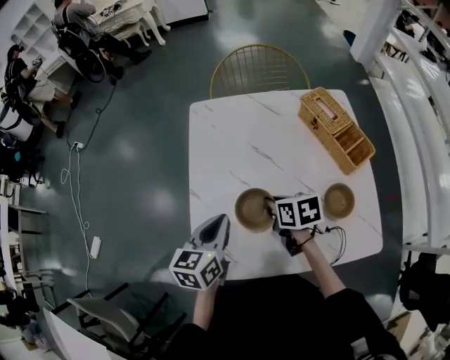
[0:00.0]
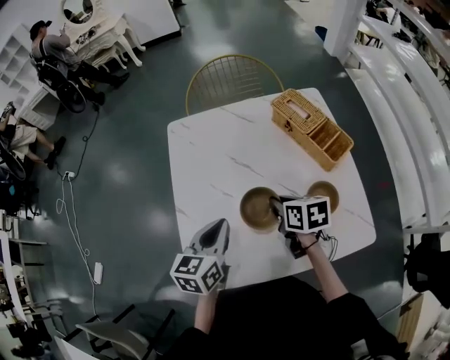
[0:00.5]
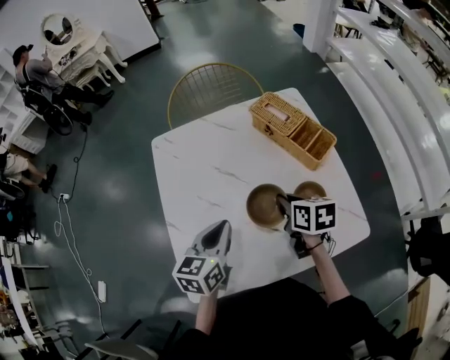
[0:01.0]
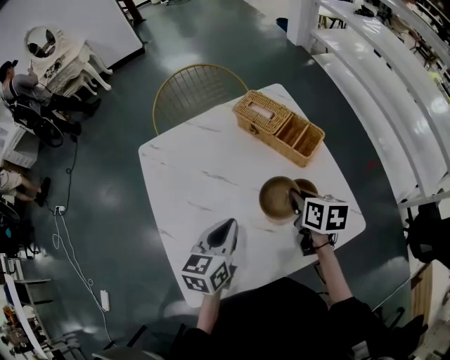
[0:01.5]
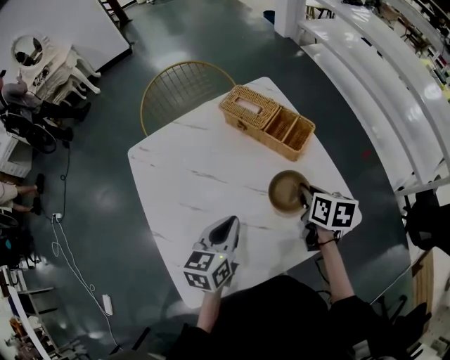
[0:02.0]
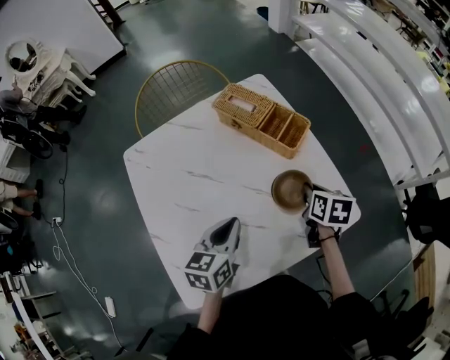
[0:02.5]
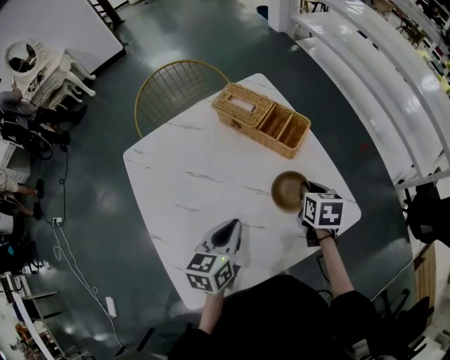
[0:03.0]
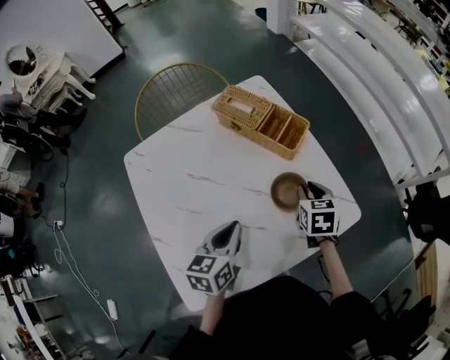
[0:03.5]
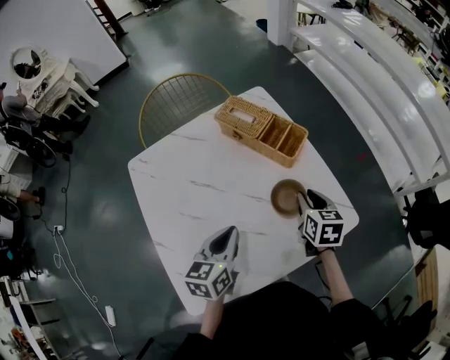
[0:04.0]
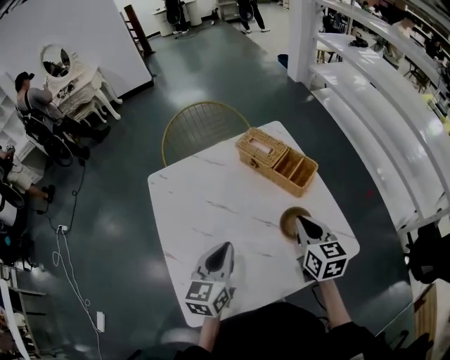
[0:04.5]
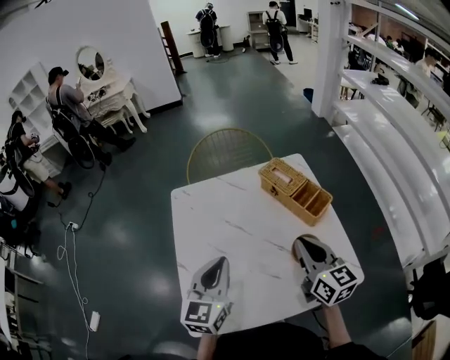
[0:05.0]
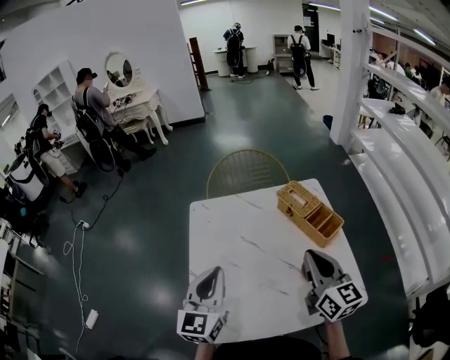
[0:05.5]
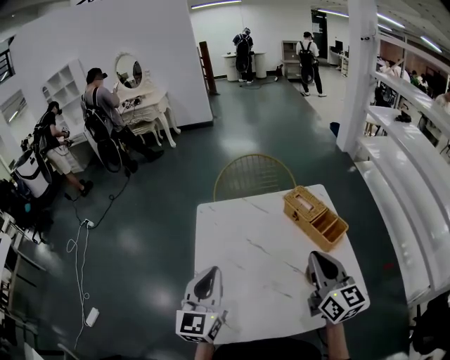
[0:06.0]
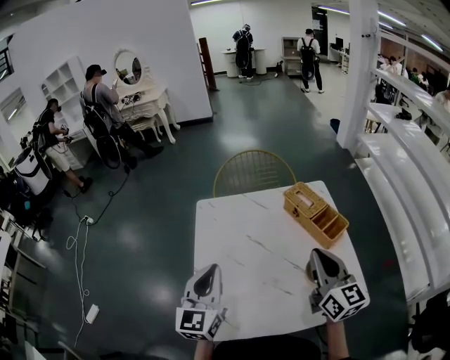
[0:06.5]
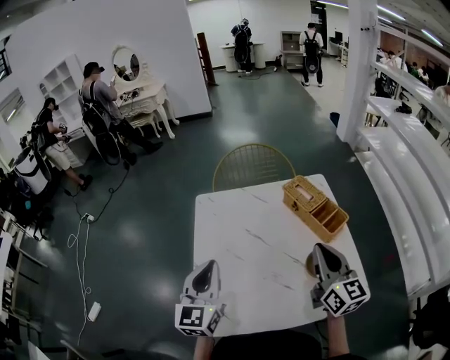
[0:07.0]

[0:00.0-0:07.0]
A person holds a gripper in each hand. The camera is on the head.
0:00.0 to 0:02.0: The left gripper moves roughly 20 cm, and rotates about 30 degrees, while the right gripper shifts by approximately 30 cm, and rotates about 40 degrees.
0:02.0 to 0:03.5: The right gripper rotates roughly 20 degrees.
0:03.5 to 0:05.0: The two grippers go some 15 cm upward. The right gripper tilts its fingers some 40 degrees upward, while the left gripper turns by some 40 degrees.
0:05.0 to 0:07.0: The right gripper is displaced upward by about 5 cm, while the left gripper travels to the left by roughly 10 cm.

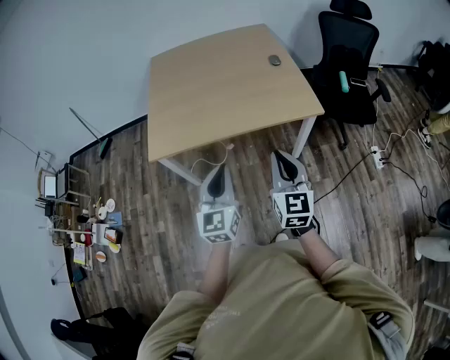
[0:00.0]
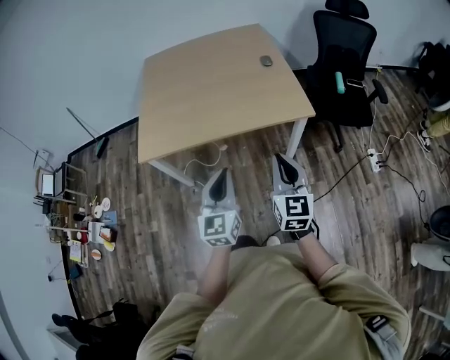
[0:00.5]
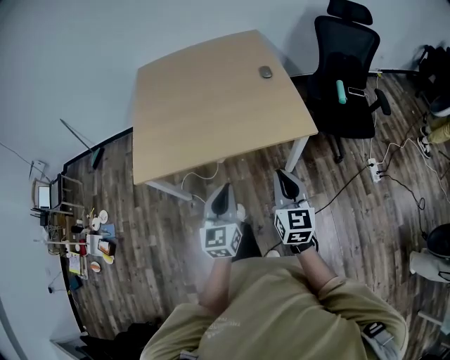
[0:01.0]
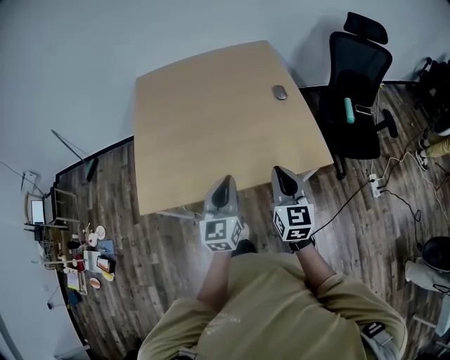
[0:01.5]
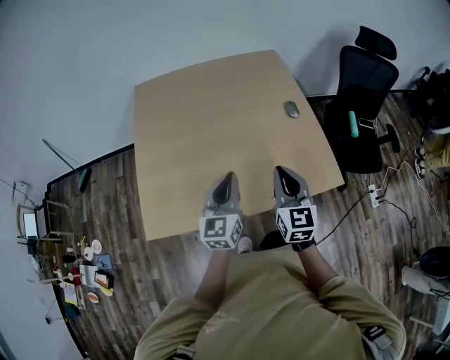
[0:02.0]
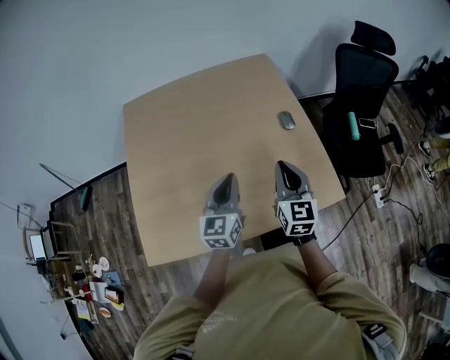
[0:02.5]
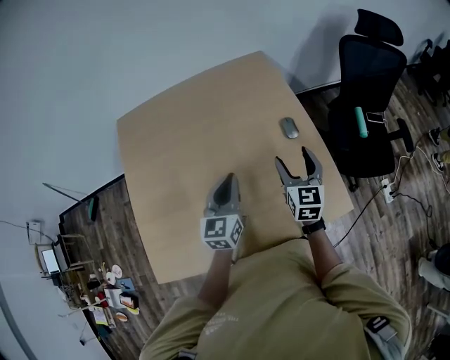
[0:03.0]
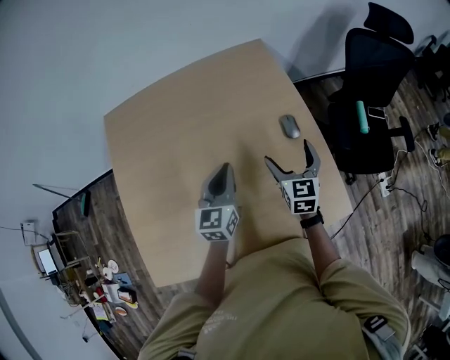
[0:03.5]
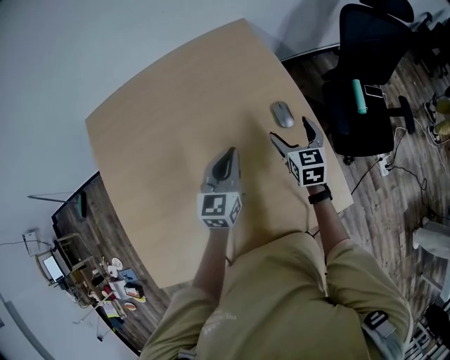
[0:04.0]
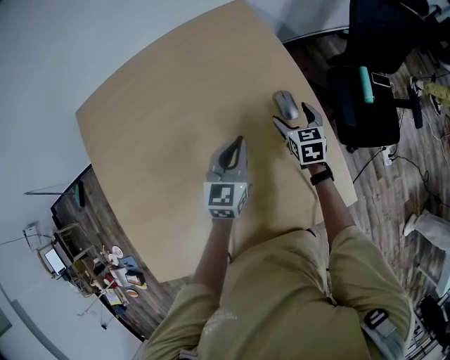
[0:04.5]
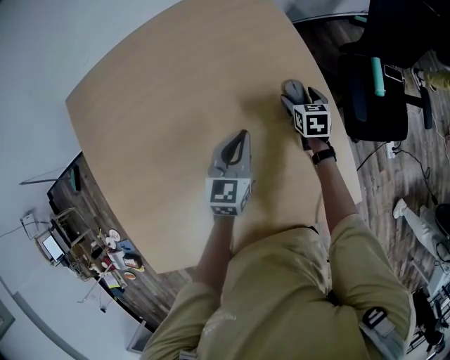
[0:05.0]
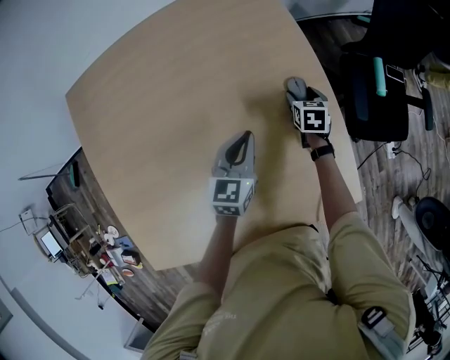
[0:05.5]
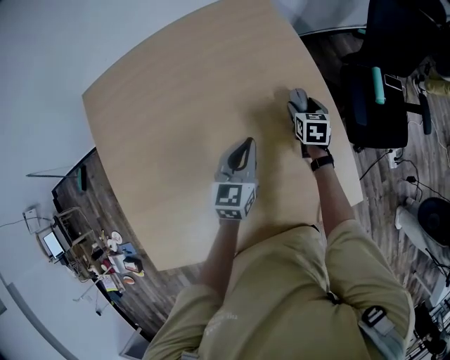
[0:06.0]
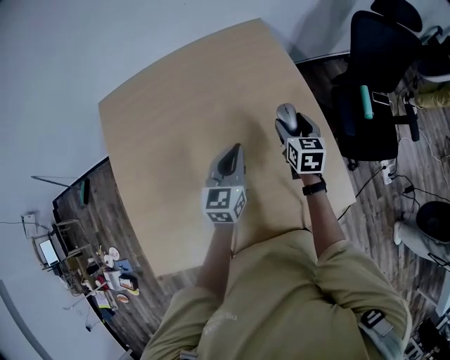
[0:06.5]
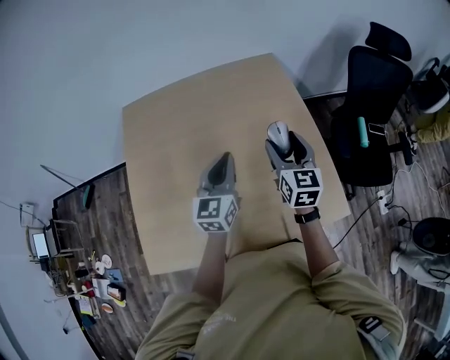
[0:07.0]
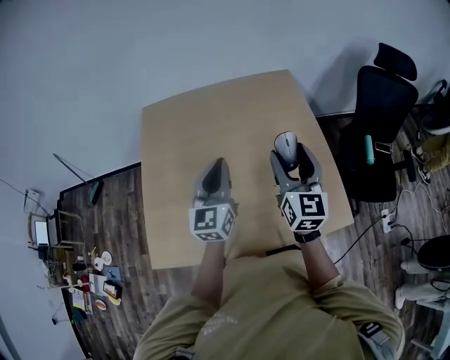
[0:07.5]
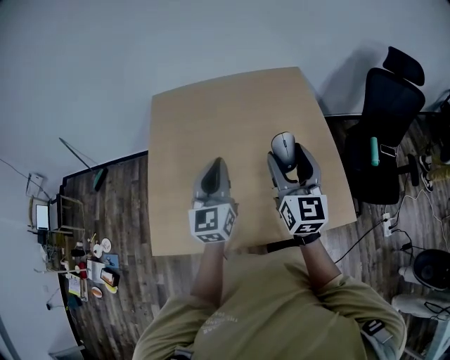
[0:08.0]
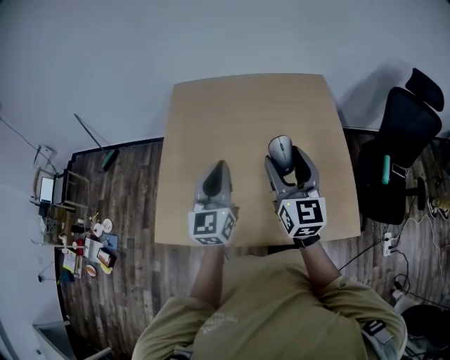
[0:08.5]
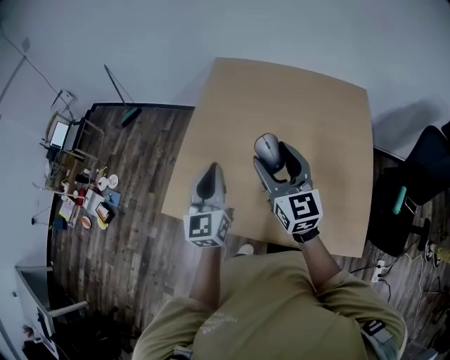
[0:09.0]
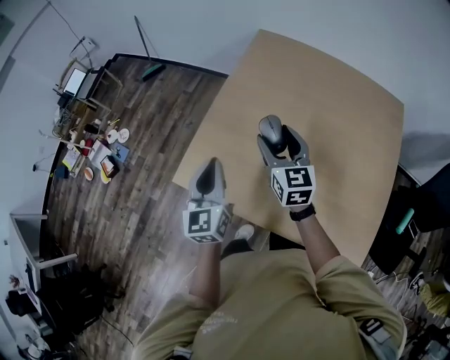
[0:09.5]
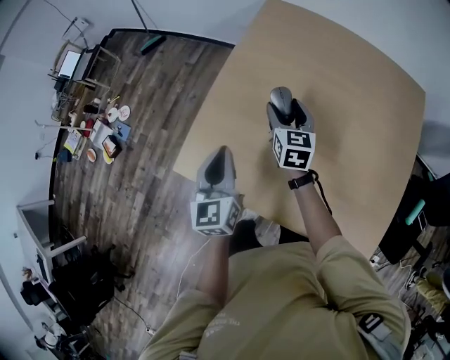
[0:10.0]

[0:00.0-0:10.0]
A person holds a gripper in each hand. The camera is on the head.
0:00.0 to 0:02.0: The two grippers travel together, forward, roughly 40 cm.
0:02.0 to 0:04.0: The left gripper is displaced forward by some 35 cm. The right gripper shifts roughly 40 cm forward and downward, turns by about 20 degrees, and opens.
0:04.0 to 0:06.0: The right gripper moves downward and forward, about 15 cm; the left gripper is displaced downward by approximately 5 cm.
0:06.0 to 0:08.0: The grippers both shift upward, backward and to the left by some 50 cm. The right gripper angles its fingers upward, by about 50 degrees. Meanwhile the left gripper swivels approximately 40 degrees.
0:08.0 to 0:10.0: The left gripper moves roughly 30 cm, and swivels approximately 40 degrees. Meanwhile the right gripper ends up roughly 40 cm from where it was, and turns by about 40 degrees.

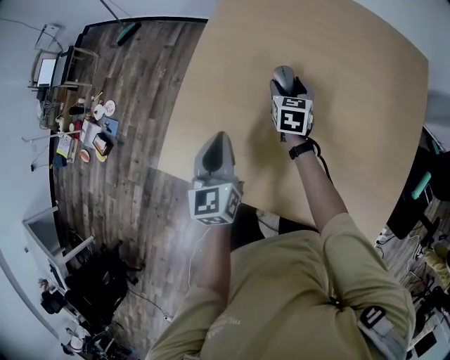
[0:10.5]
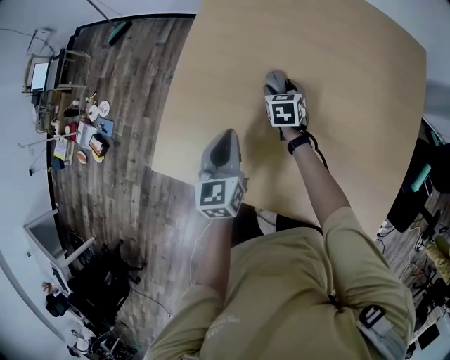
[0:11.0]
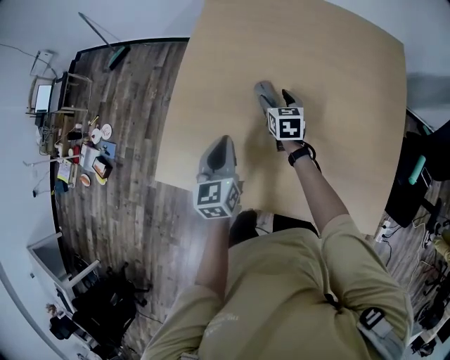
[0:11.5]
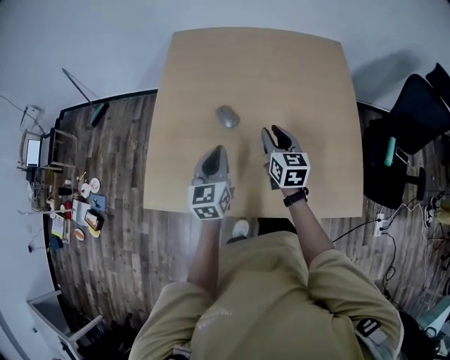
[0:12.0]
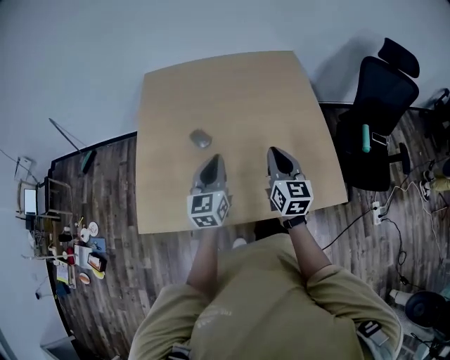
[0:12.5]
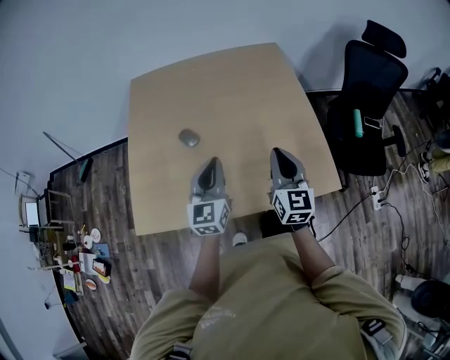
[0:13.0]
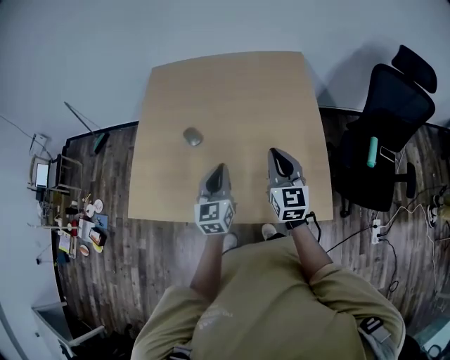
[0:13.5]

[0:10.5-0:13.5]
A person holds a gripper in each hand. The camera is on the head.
0:10.5 to 0:12.0: The left gripper is displaced to the right by about 10 cm, and swivels some 20 degrees. The right gripper travels backward, upward and to the right by approximately 25 cm, and turns by some 20 degrees.
0:12.0 to 0:13.5: The right gripper heads to the right and upward, covering approximately 25 cm, and changes its angle by about 20 degrees. Meanwhile the left gripper travels to the right by approximately 25 cm.

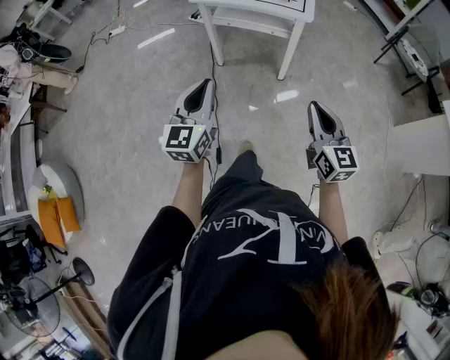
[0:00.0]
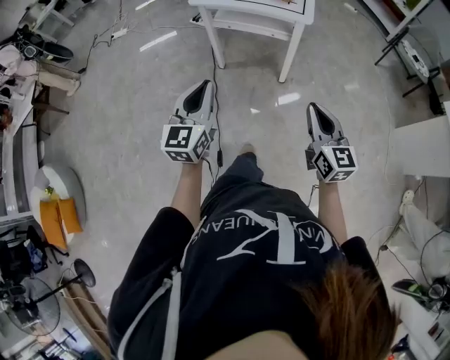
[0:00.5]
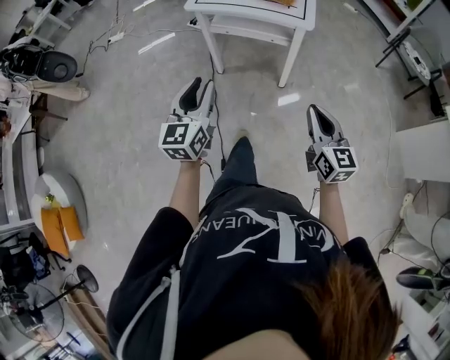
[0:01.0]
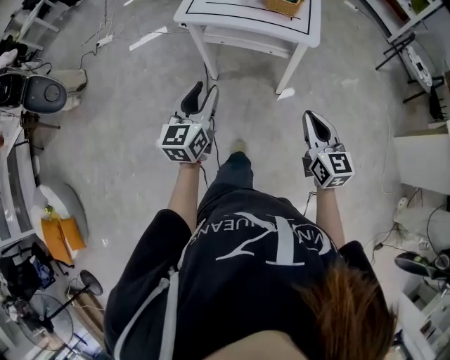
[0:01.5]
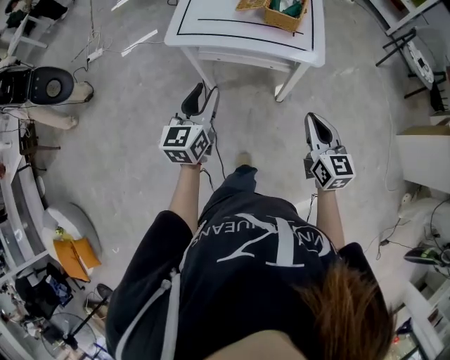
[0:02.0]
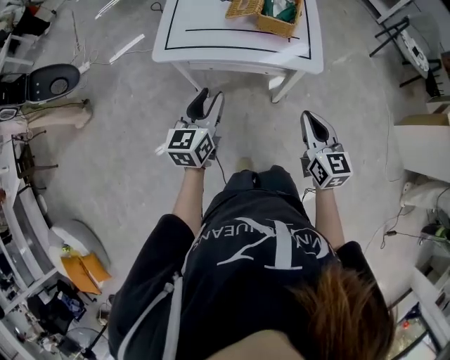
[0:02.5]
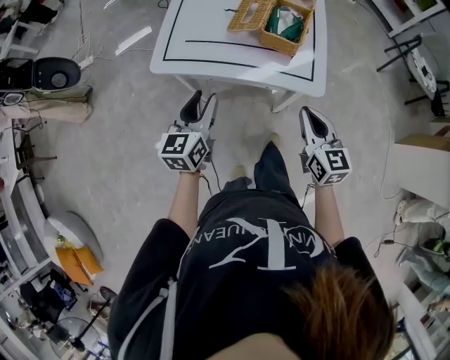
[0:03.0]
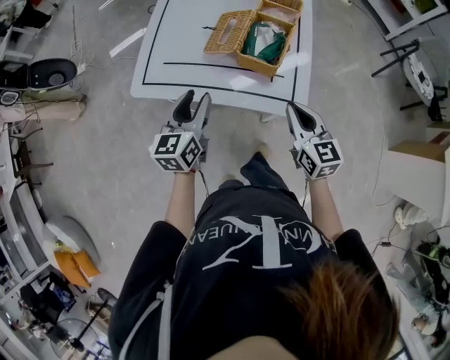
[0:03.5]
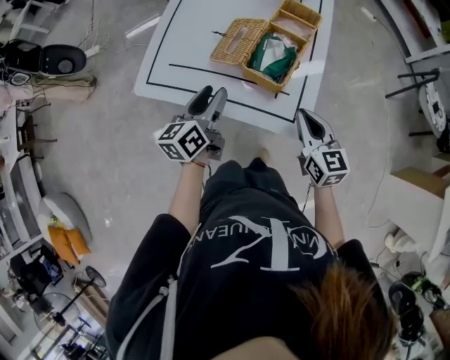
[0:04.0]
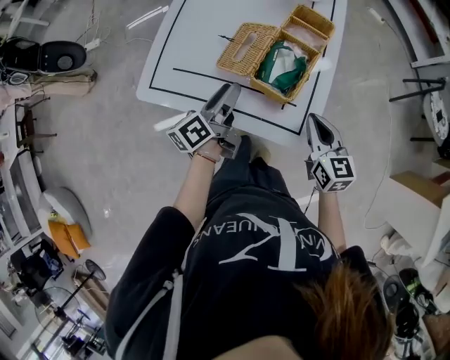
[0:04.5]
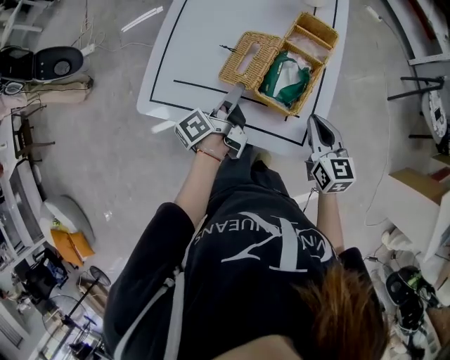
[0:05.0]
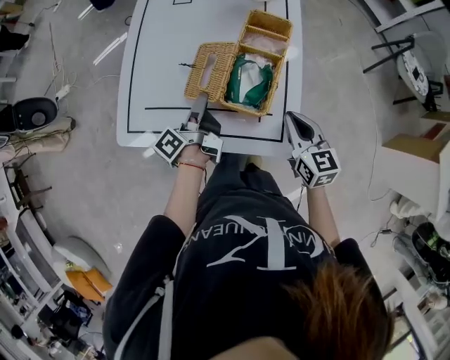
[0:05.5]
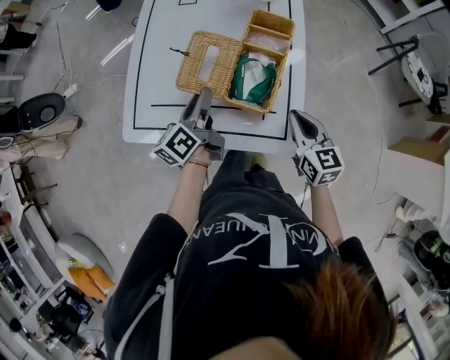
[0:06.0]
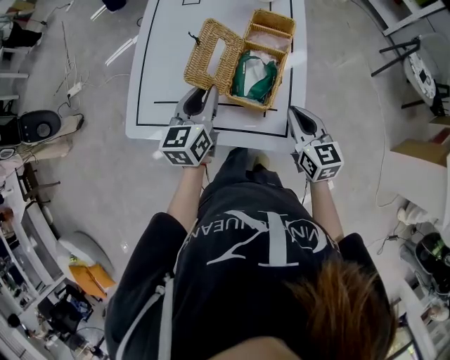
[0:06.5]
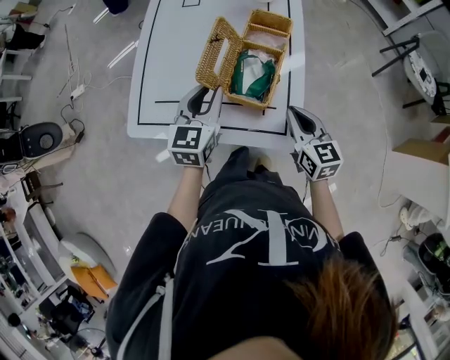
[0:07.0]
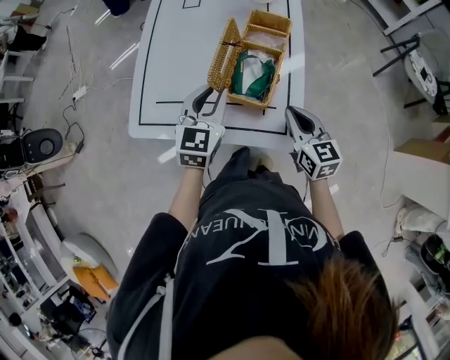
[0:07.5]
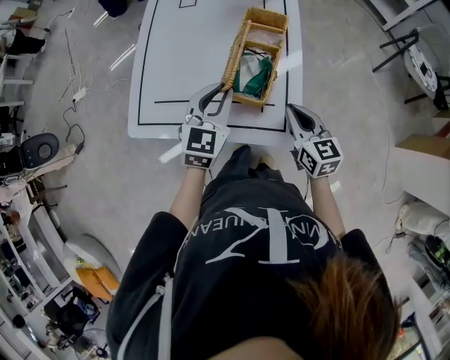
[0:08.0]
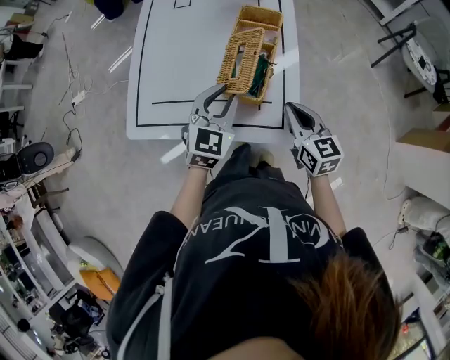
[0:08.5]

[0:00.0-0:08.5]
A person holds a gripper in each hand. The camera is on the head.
0:00.0 to 0:02.0: The grippers both shift forward by approximately 35 cm. The left gripper opens.
0:02.0 to 0:04.0: The right gripper shifts approximately 30 cm forward. The left gripper moves forward and to the right, about 30 cm, and changes its angle by about 30 degrees.
0:04.0 to 0:06.5: The left gripper travels forward by some 10 cm, changes its angle by some 20 degrees, and closes; the right gripper moves forward, about 5 cm.
0:06.5 to 0:08.5: The left gripper shifts approximately 10 cm to the right, and swivels roughly 40 degrees.
